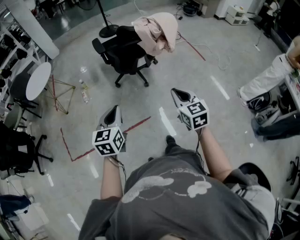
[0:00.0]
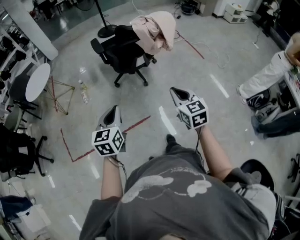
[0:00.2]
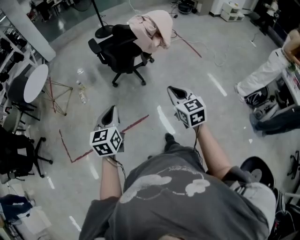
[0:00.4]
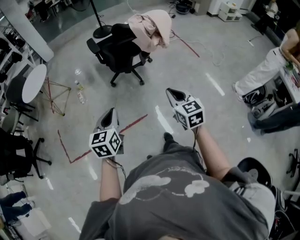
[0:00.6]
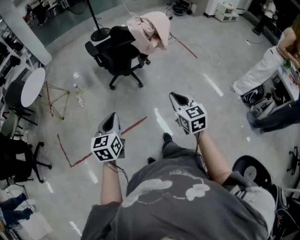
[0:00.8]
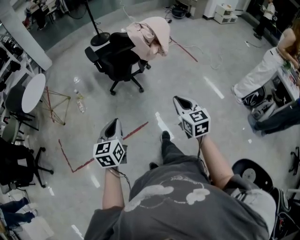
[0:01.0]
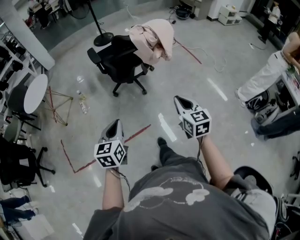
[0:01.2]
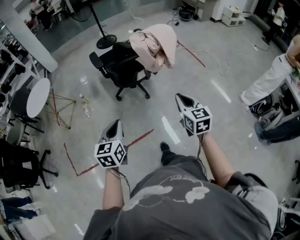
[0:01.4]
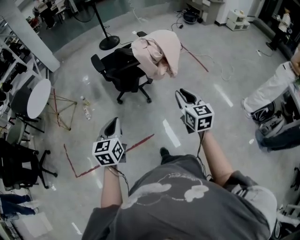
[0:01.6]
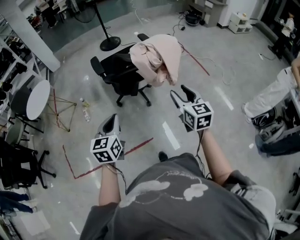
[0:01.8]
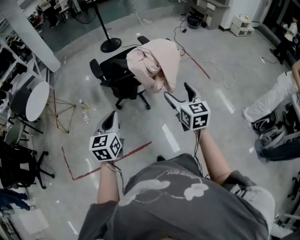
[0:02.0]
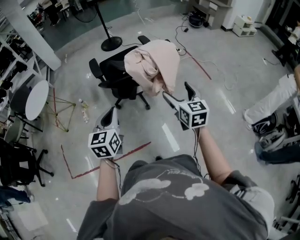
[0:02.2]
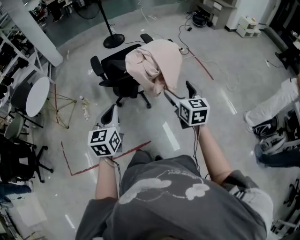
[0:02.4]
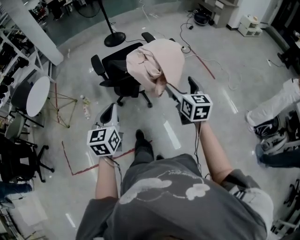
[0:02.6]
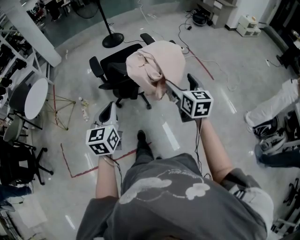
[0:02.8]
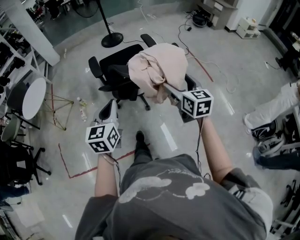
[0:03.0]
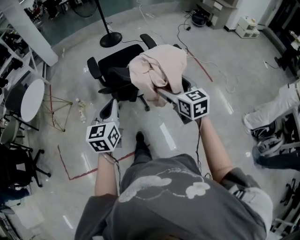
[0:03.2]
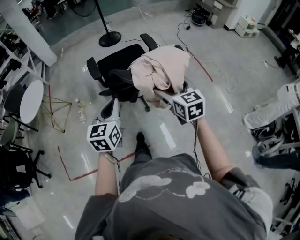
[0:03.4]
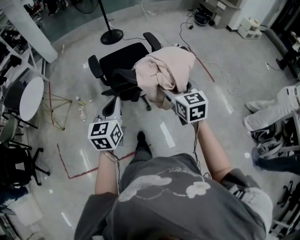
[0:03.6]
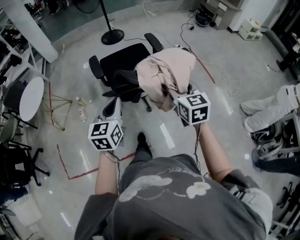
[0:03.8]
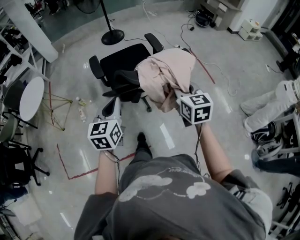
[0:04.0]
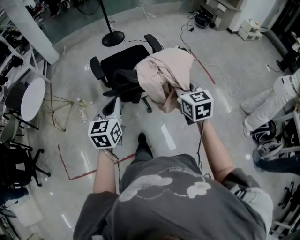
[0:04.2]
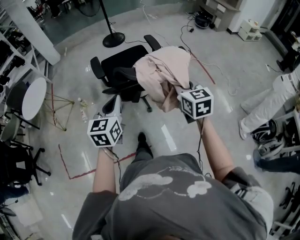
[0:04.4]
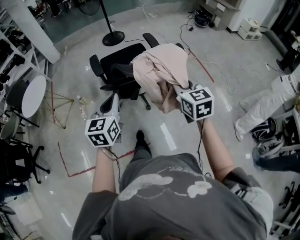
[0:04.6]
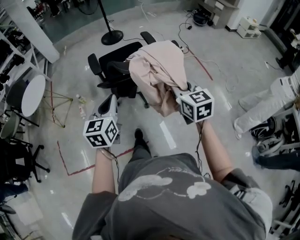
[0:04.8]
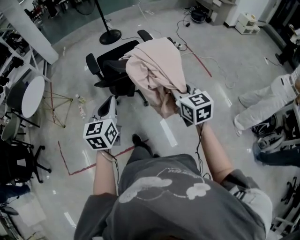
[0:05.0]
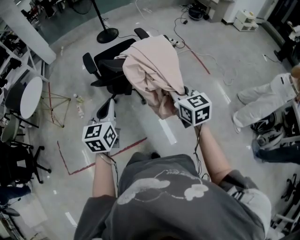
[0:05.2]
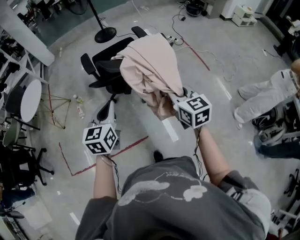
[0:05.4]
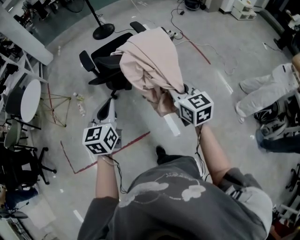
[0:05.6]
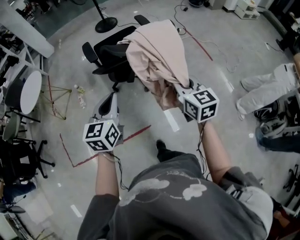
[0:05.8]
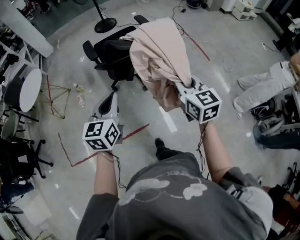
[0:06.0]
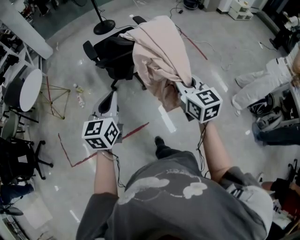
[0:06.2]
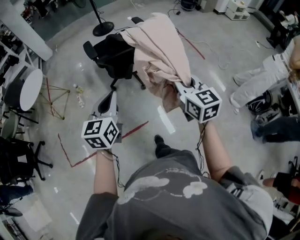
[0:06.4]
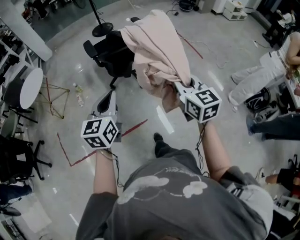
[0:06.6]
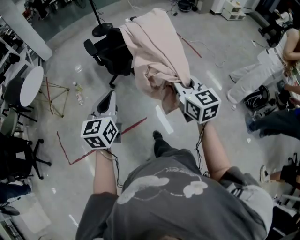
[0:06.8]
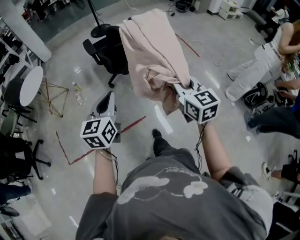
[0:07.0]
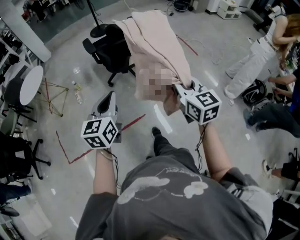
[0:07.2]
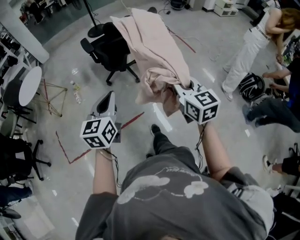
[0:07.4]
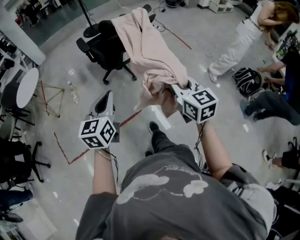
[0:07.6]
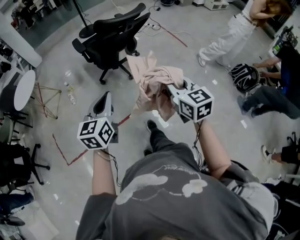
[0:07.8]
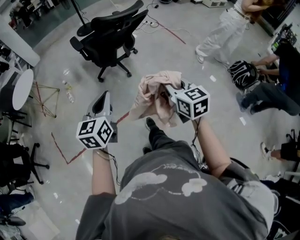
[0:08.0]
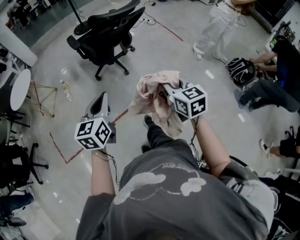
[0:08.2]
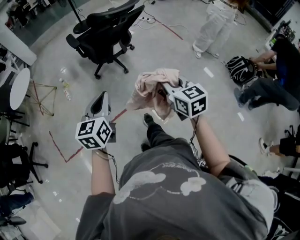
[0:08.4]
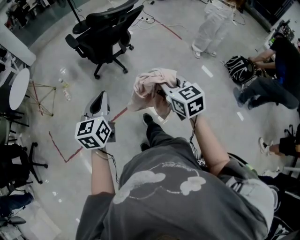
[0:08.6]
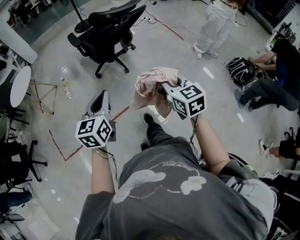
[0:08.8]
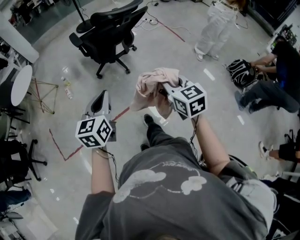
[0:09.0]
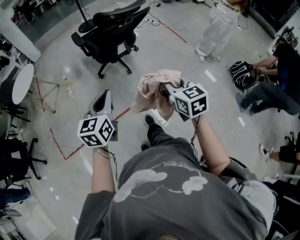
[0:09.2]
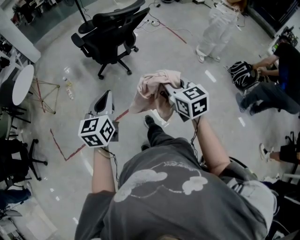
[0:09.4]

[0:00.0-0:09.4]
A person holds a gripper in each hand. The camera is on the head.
0:00.0 to 0:01.6: The two grippers go approximately 15 cm forward.
0:01.6 to 0:03.2: The grippers both shift forward by some 20 cm. The right gripper opens its fingers.
0:03.2 to 0:04.8: The right gripper changes place by about 5 cm, and closes its fingers.
0:04.8 to 0:06.2: The two grippers go about 15 cm backward.
0:06.2 to 0:07.8: Both grippers move backward, roughly 25 cm.
0:07.8 to 0:09.4: The grippers make only small movements.

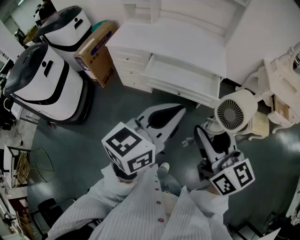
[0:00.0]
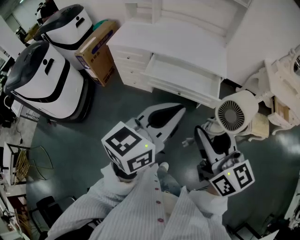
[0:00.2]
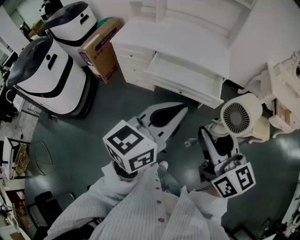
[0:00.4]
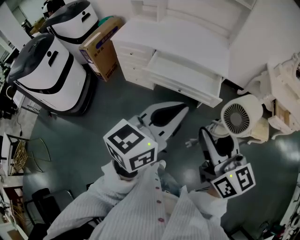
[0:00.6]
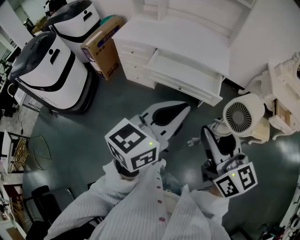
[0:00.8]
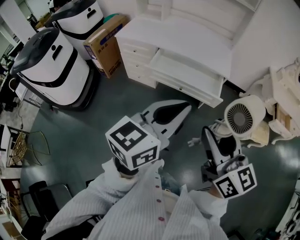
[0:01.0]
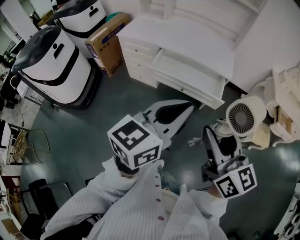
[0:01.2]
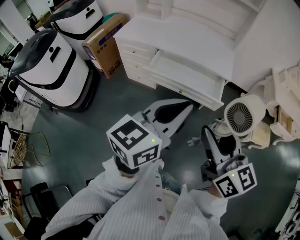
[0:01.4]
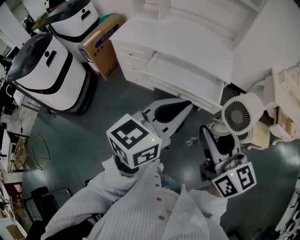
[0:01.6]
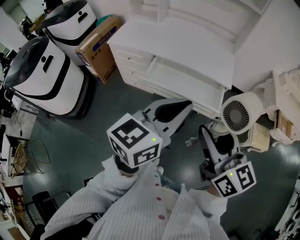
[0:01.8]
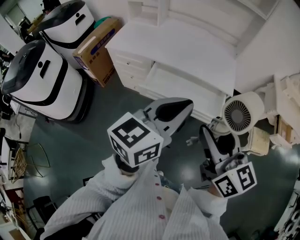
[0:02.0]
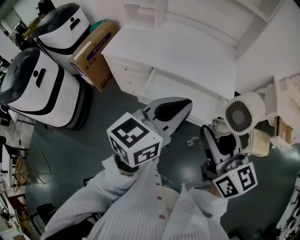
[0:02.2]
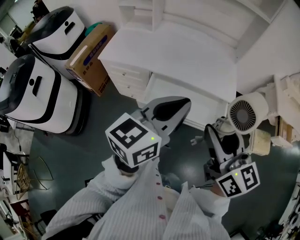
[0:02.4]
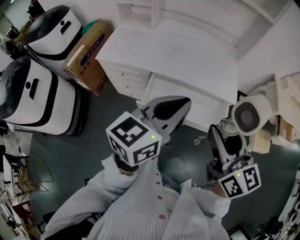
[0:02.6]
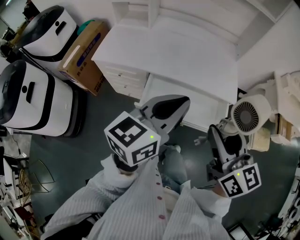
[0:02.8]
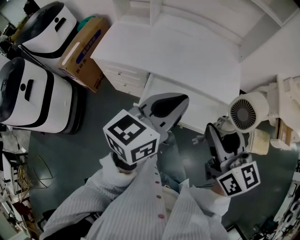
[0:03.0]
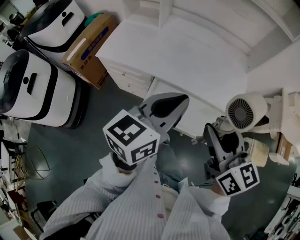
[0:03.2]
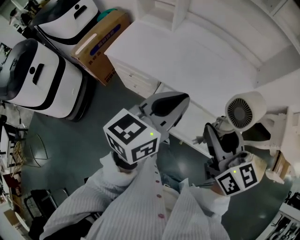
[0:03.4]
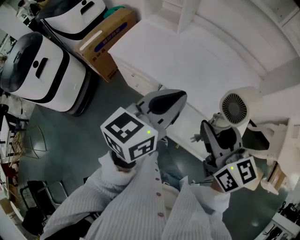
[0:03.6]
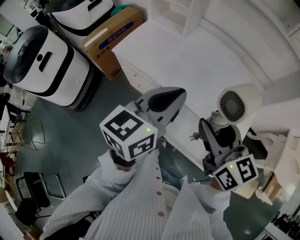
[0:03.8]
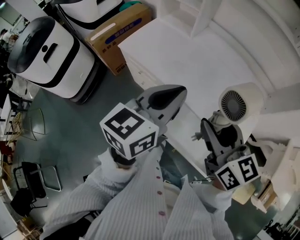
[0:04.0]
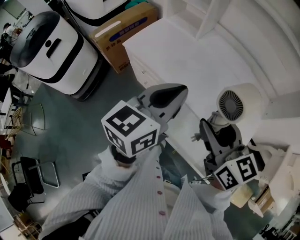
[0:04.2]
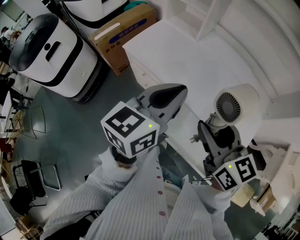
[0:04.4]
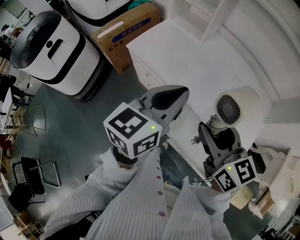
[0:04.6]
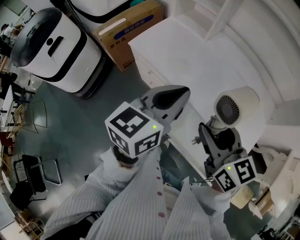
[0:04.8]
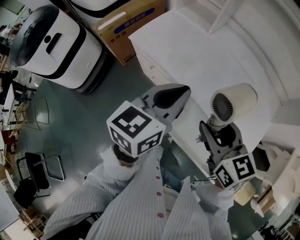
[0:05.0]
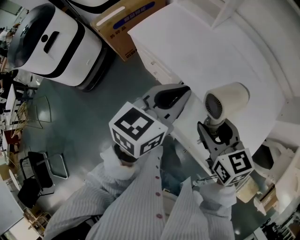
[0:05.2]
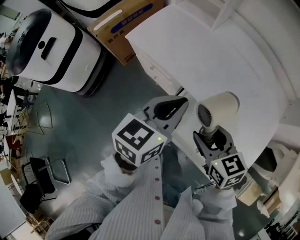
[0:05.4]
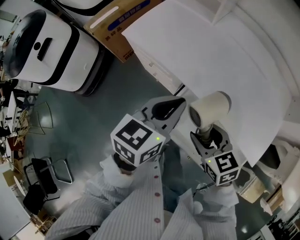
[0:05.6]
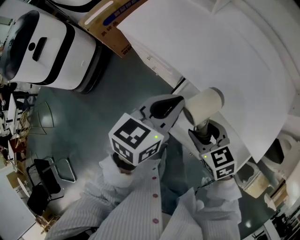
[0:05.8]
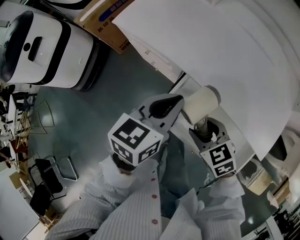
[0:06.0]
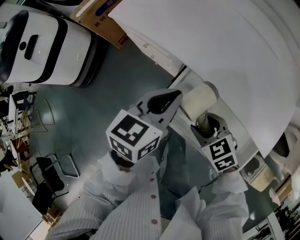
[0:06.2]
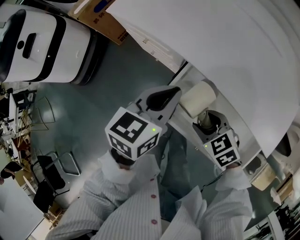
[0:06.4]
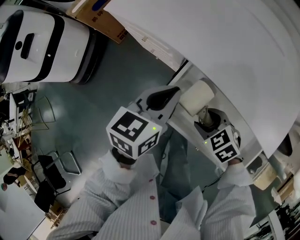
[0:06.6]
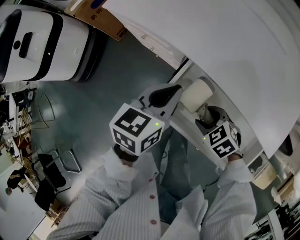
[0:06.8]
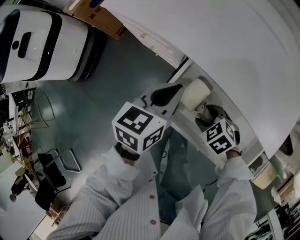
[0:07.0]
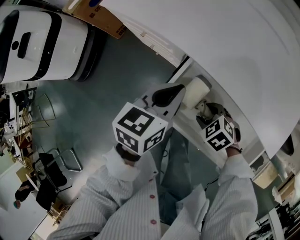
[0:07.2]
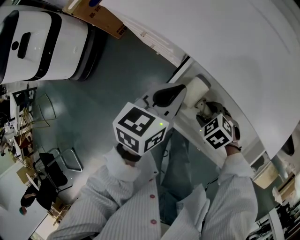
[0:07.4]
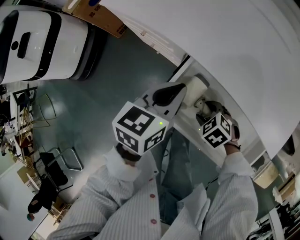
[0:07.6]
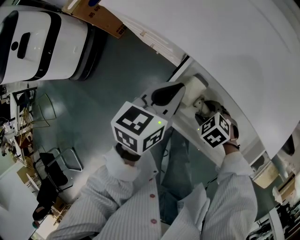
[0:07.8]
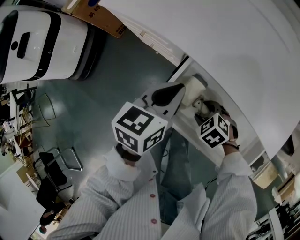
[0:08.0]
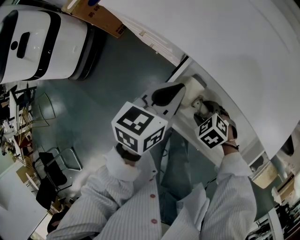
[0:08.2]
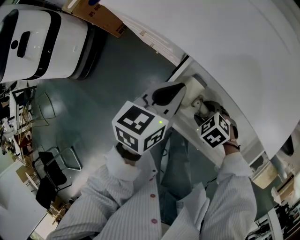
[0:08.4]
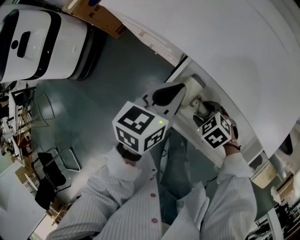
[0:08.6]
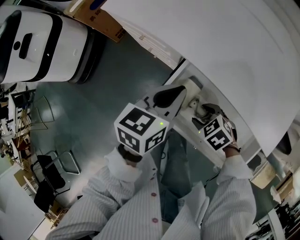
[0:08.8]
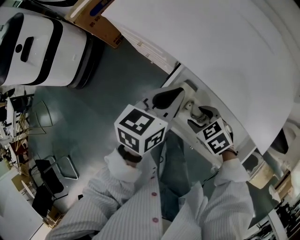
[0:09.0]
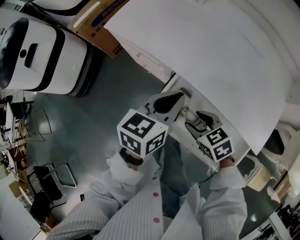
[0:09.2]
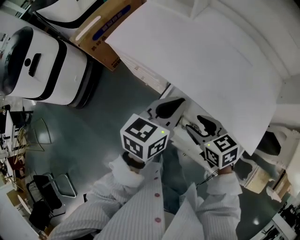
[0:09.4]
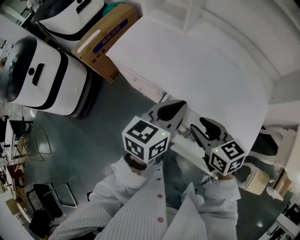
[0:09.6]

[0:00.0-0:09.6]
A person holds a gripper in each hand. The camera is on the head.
0:00.0 to 0:01.6: The left gripper is displaced forward by about 5 cm, while the right gripper changes place by approximately 5 cm.
0:01.6 to 0:03.2: The right gripper is displaced forward by about 30 cm. Meanwhile the left gripper travels forward and to the left by some 35 cm.
0:03.2 to 0:04.8: The left gripper moves approximately 15 cm, and rotates about 20 degrees, while the right gripper shifts by approximately 15 cm, and swivels roughly 30 degrees.
0:04.8 to 0:06.4: Both grippers move downward, roughly 30 cm. The right gripper tips its fingers downward by roughly 40 degrees.
0:06.4 to 0:08.0: The left gripper travels downward by approximately 5 cm, while the right gripper shifts about 10 cm downward.
0:08.0 to 0:09.6: The right gripper goes approximately 30 cm upward, and points its fingers roughly 40 degrees further upward, while the left gripper goes some 20 cm upward.

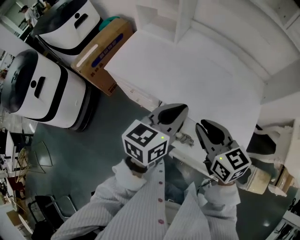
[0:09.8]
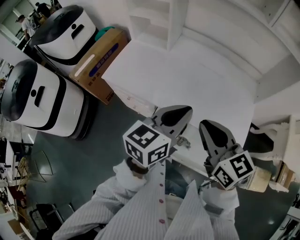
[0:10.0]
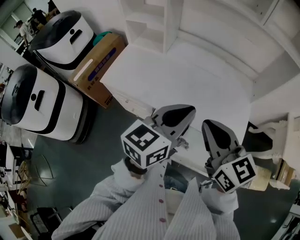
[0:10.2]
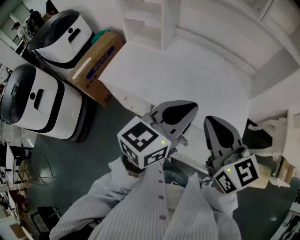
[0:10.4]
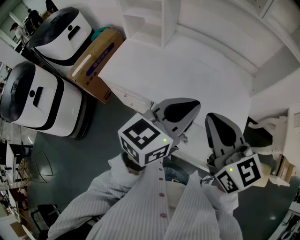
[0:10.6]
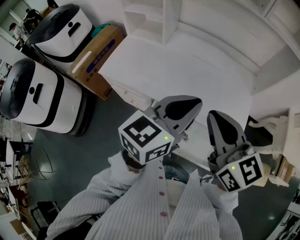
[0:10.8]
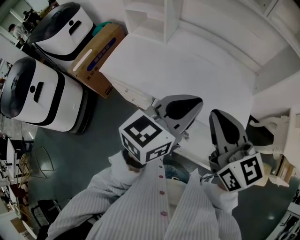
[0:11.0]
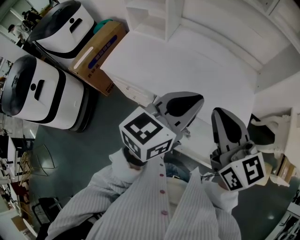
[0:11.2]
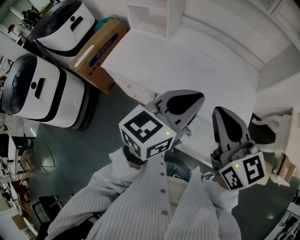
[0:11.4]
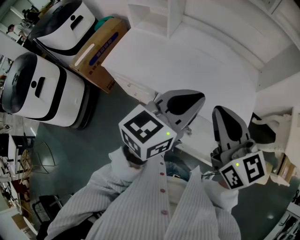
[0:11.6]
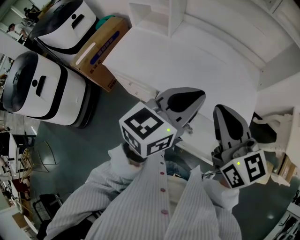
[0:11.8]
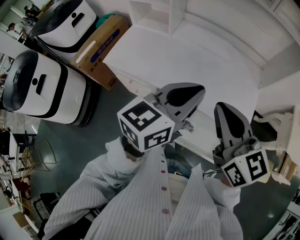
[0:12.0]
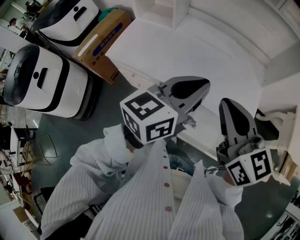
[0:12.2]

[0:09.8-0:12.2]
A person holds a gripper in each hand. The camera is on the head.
0:09.8 to 0:11.0: The right gripper heads upward, covering roughly 15 cm. Meanwhile the left gripper travels upward and to the right by approximately 10 cm.
0:11.0 to 0:12.2: The grippers move only a little.

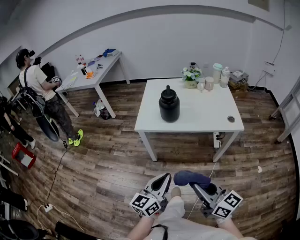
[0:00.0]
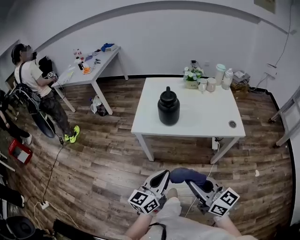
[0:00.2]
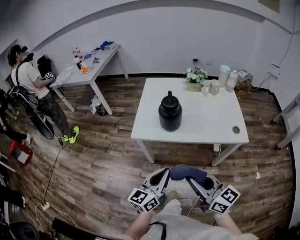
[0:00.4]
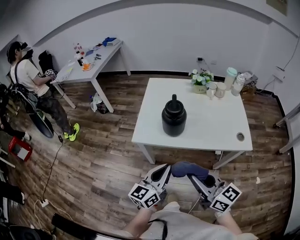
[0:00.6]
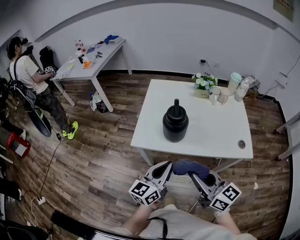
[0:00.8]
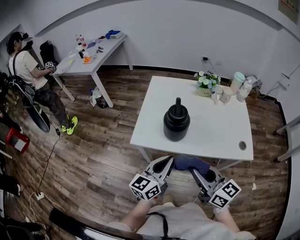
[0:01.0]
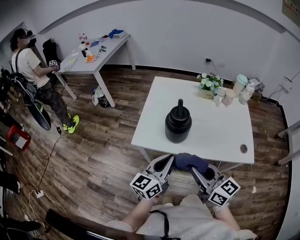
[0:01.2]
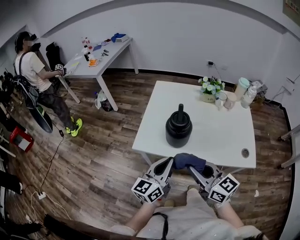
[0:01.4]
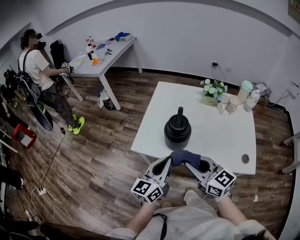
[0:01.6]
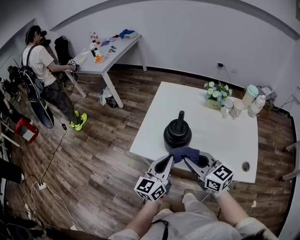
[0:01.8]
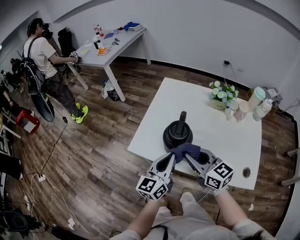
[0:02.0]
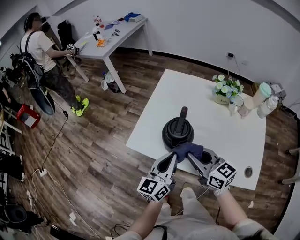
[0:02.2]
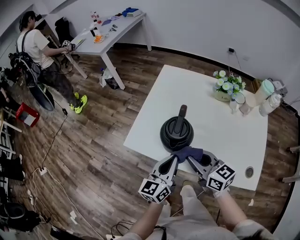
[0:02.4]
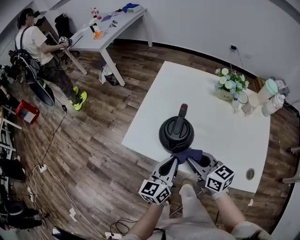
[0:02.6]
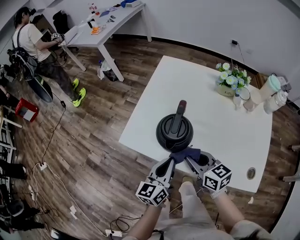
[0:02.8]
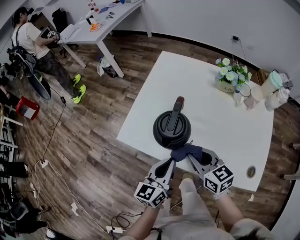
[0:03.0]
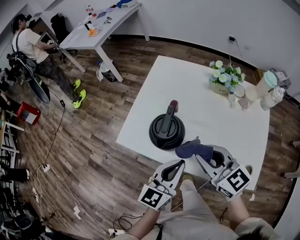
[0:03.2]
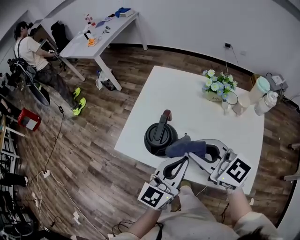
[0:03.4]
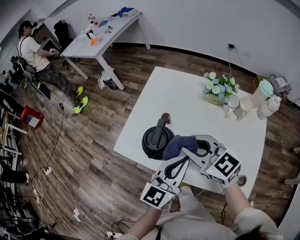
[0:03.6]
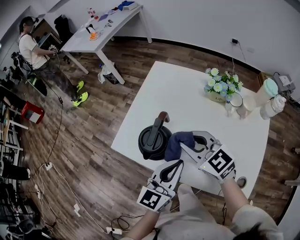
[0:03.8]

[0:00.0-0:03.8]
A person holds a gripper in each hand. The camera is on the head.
0:00.0 to 0:01.2: The grippers both shift forward by approximately 30 cm.
0:01.2 to 0:02.6: The left gripper moves downward, forward and to the right, about 15 cm, and turns by roughly 20 degrees. Meanwhile the right gripper goes some 20 cm forward and downward, and changes its angle by roughly 20 degrees.
0:02.6 to 0:03.8: The right gripper is displaced forward and upward by roughly 10 cm, and changes its angle by roughly 30 degrees; the left gripper moves to the right and upward, approximately 15 cm.
